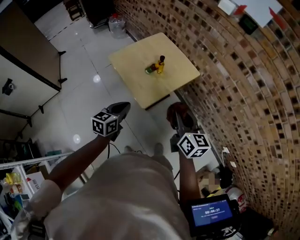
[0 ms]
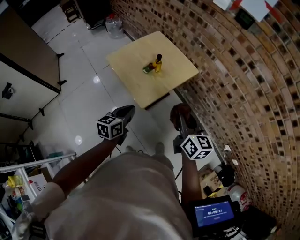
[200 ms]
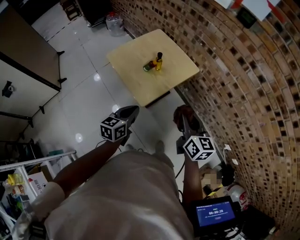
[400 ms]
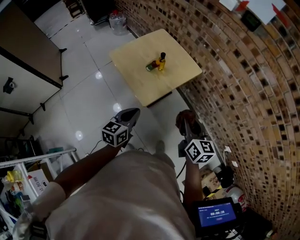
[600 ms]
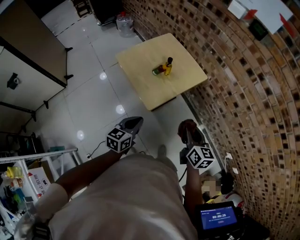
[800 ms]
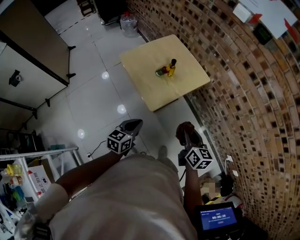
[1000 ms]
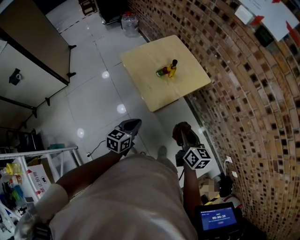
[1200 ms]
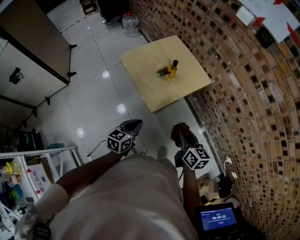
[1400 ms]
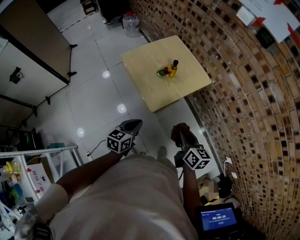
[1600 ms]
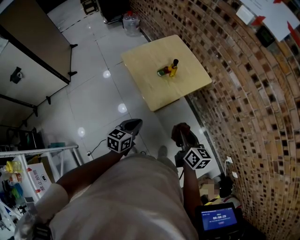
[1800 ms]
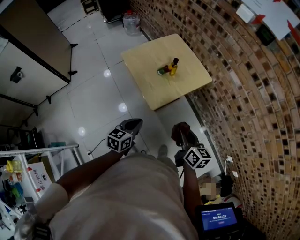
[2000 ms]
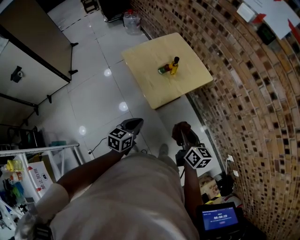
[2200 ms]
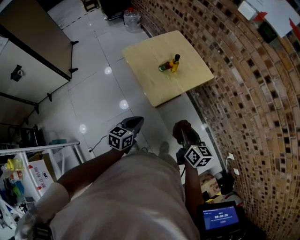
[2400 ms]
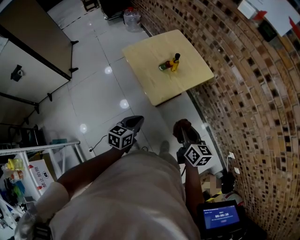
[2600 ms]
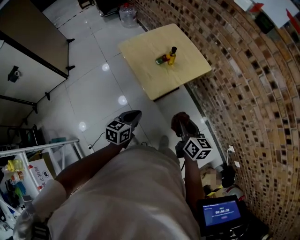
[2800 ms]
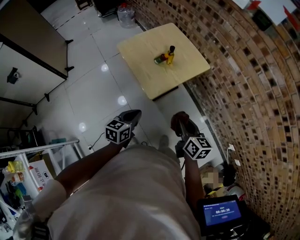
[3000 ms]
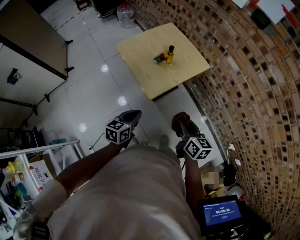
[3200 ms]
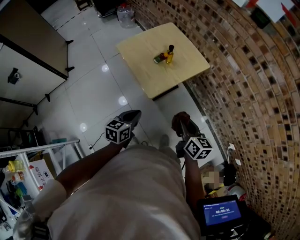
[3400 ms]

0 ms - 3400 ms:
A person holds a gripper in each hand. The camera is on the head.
0 ms - 1600 ms: The right gripper is displaced downward by approximately 10 cm, while the left gripper moves downward and backward, roughly 10 cm.
1600 ms - 3400 ms: The grippers make only small movements.

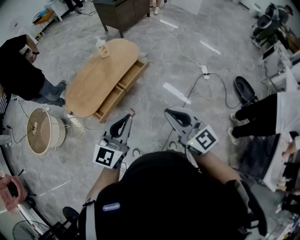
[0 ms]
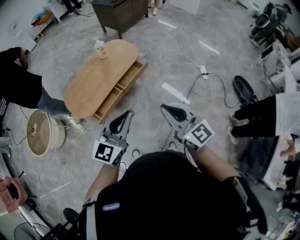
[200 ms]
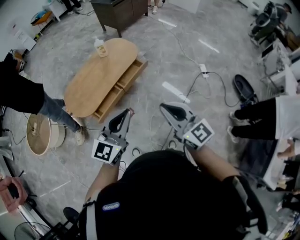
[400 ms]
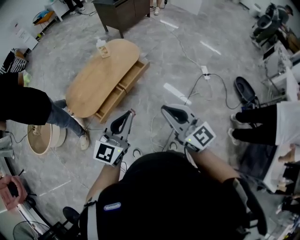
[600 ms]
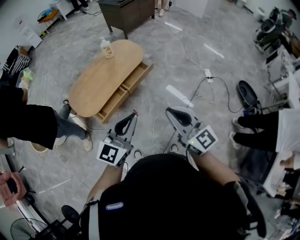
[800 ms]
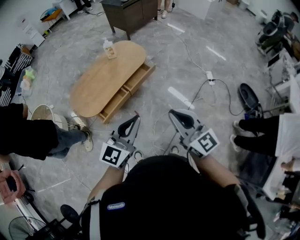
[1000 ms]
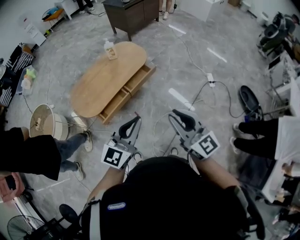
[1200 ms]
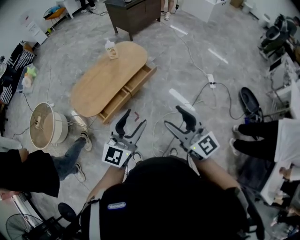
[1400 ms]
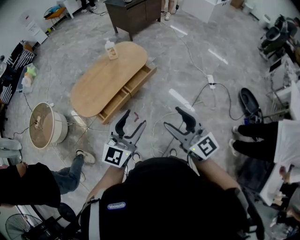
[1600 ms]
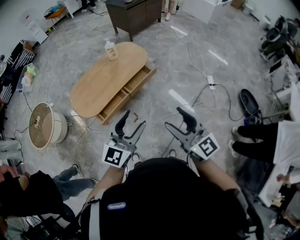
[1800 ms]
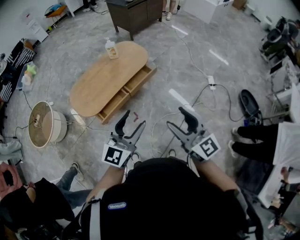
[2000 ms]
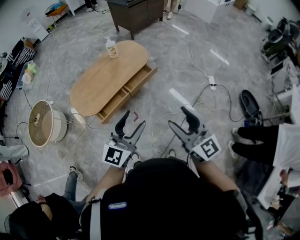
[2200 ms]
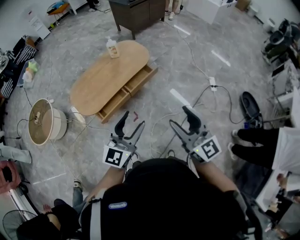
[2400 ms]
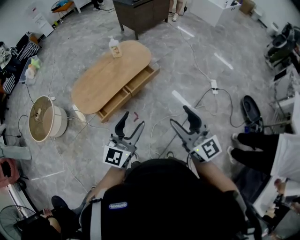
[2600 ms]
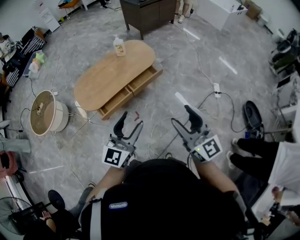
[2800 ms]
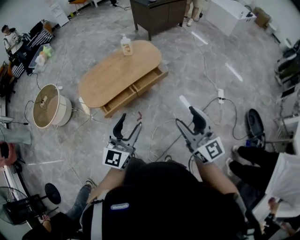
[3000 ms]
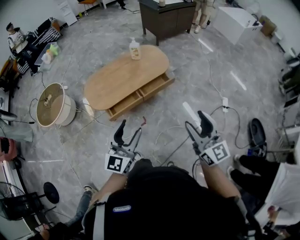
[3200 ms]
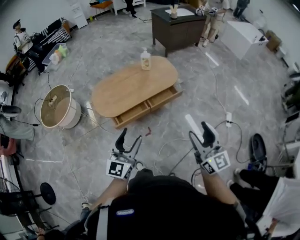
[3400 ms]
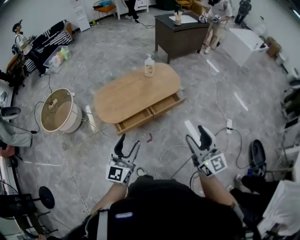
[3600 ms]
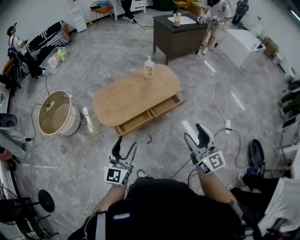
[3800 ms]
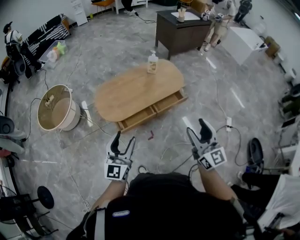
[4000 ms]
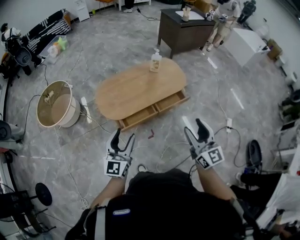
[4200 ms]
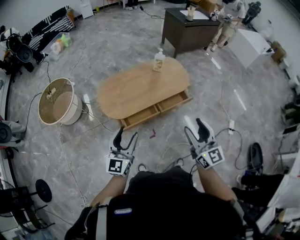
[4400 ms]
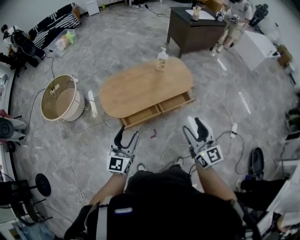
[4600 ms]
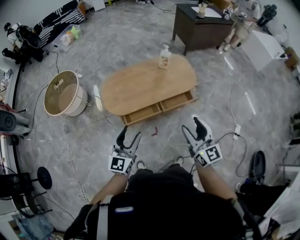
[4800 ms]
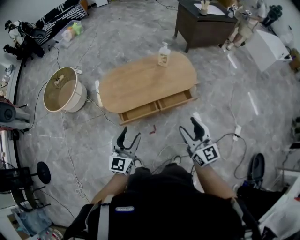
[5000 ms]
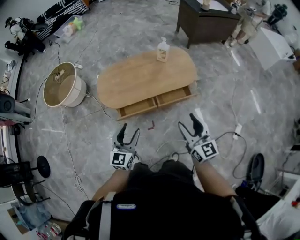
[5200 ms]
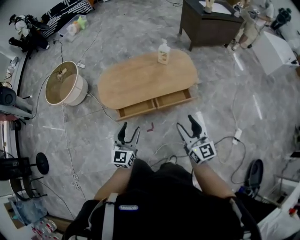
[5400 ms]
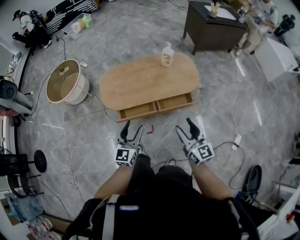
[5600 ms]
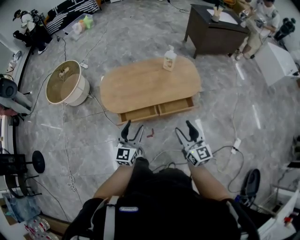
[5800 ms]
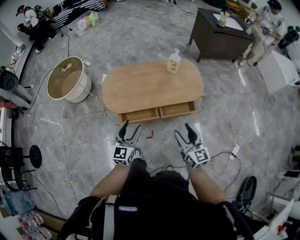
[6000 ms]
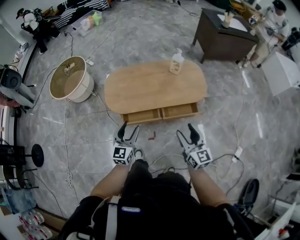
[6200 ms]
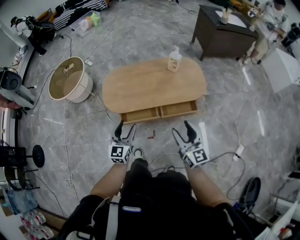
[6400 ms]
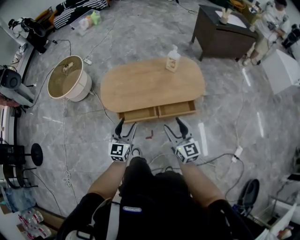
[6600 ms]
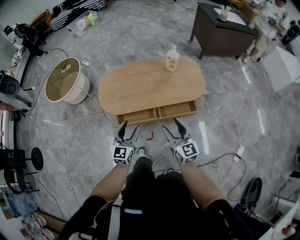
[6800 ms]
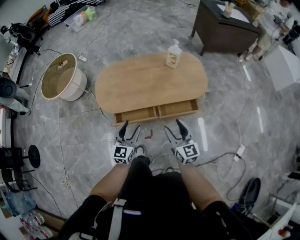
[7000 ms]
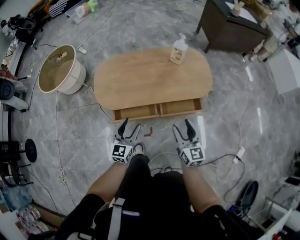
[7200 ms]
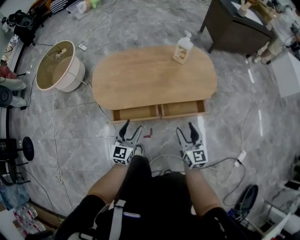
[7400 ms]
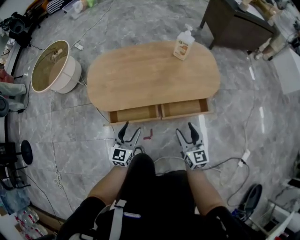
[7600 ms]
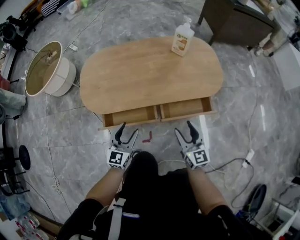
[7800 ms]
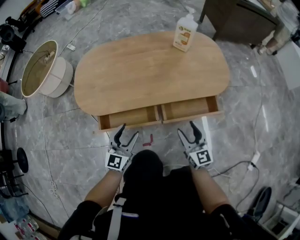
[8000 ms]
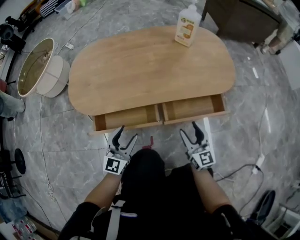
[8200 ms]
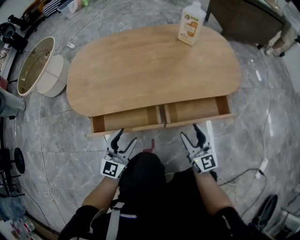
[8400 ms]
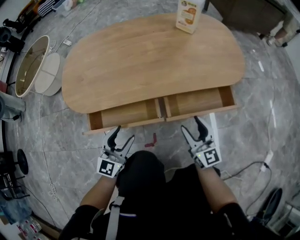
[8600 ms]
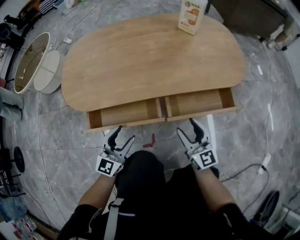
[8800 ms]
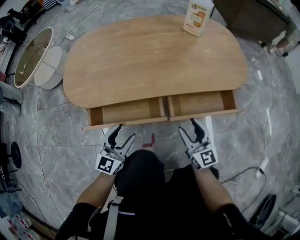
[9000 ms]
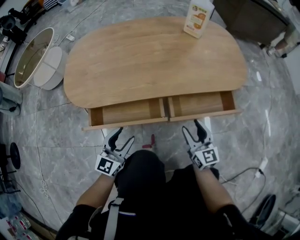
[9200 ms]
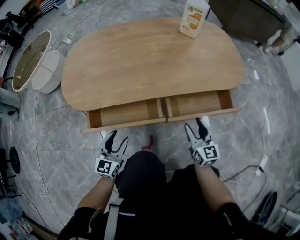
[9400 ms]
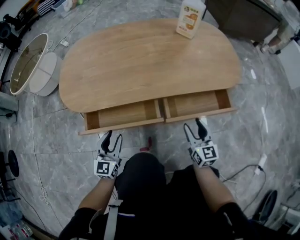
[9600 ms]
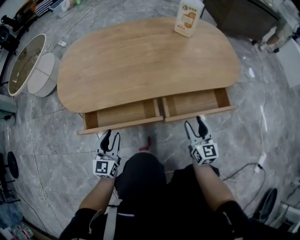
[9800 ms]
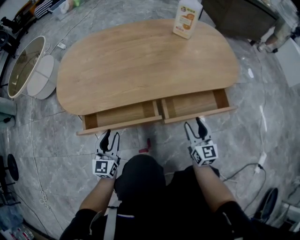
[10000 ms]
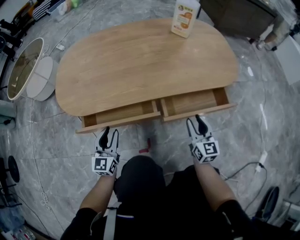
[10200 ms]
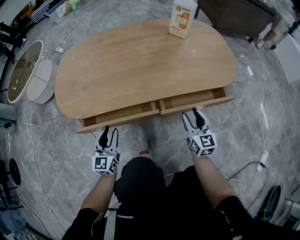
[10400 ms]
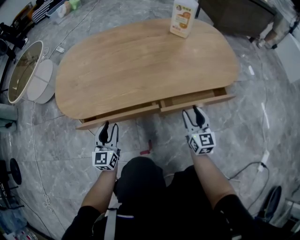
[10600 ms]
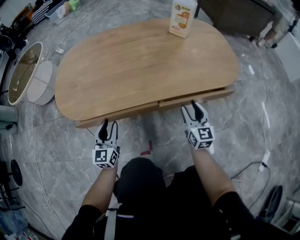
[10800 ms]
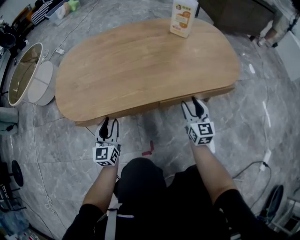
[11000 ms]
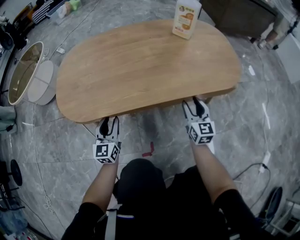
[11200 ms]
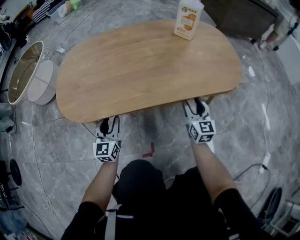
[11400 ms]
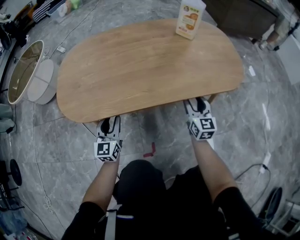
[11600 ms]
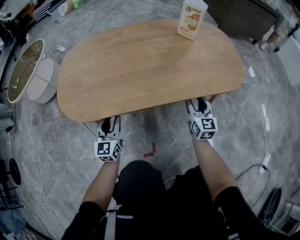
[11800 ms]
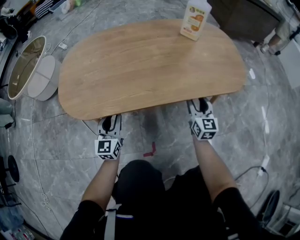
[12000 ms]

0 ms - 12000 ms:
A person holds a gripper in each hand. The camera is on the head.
0 ms - 1600 ms: The left gripper opens up; the right gripper opens its fingers.
1600 ms - 3000 ms: The right gripper shifts some 5 cm to the right.
3000 ms - 4400 ms: The right gripper moves forward and to the left, approximately 20 cm, while the left gripper travels to the left and forward by some 25 cm.
4400 ms - 6000 ms: The left gripper travels to the right, downward and forward by roughly 20 cm, while the right gripper heads downward, forward and to the right, covering some 20 cm.
6000 ms - 7600 ms: The two grippers go about 25 cm downward.
7600 ms - 9000 ms: The grippers both shift downward by about 20 cm.
9000 ms - 10400 ms: The left gripper moves to the left and downward, about 10 cm, and closes its fingers. Meanwhile the right gripper goes roughly 10 cm forward and to the right.
10400 ms - 12000 ms: The two grippers go about 10 cm forward.

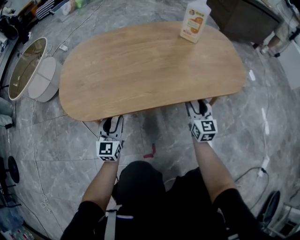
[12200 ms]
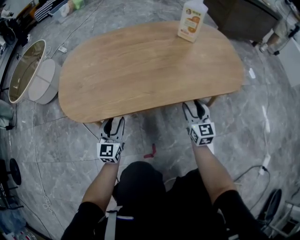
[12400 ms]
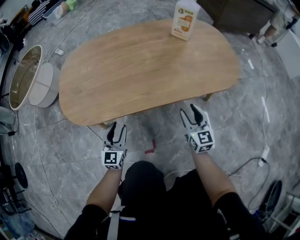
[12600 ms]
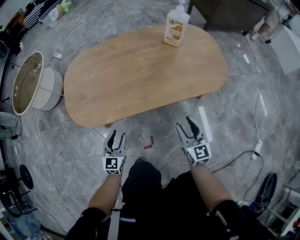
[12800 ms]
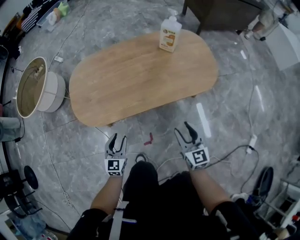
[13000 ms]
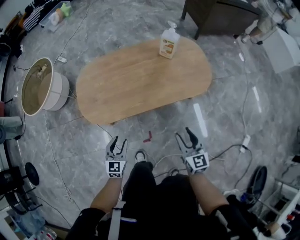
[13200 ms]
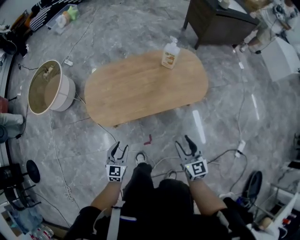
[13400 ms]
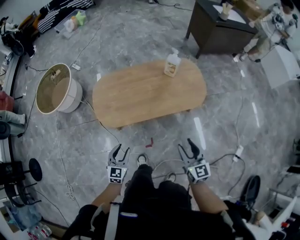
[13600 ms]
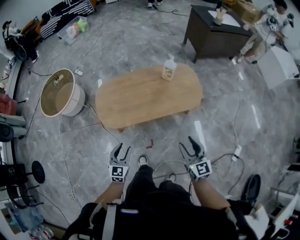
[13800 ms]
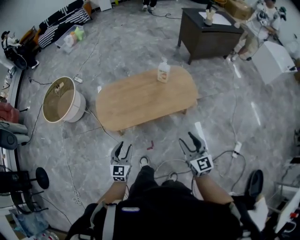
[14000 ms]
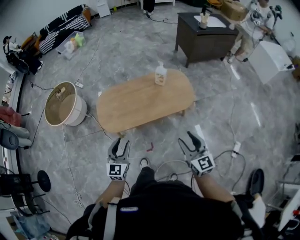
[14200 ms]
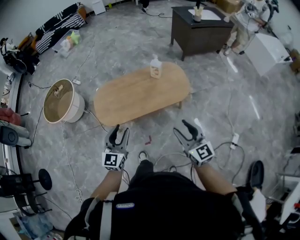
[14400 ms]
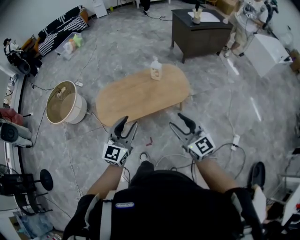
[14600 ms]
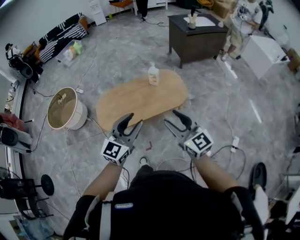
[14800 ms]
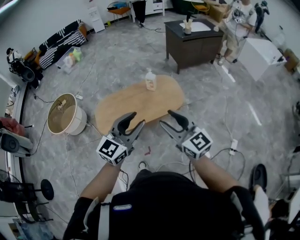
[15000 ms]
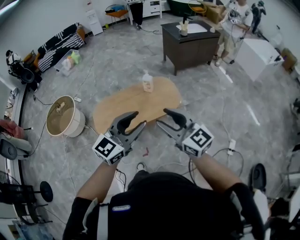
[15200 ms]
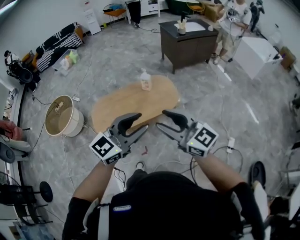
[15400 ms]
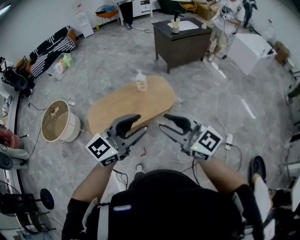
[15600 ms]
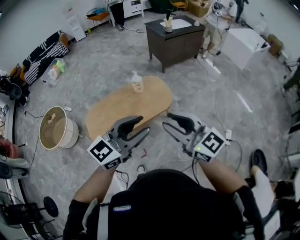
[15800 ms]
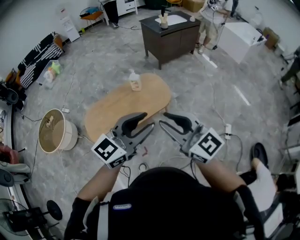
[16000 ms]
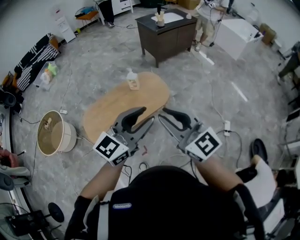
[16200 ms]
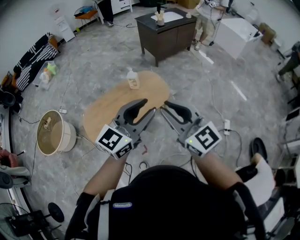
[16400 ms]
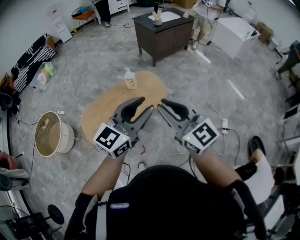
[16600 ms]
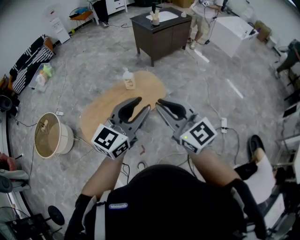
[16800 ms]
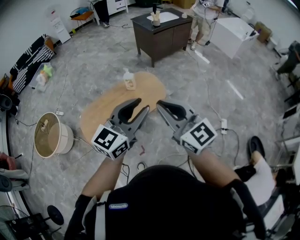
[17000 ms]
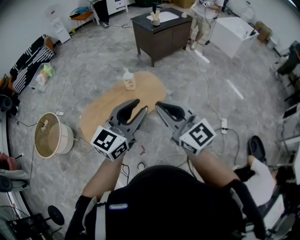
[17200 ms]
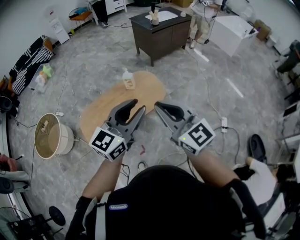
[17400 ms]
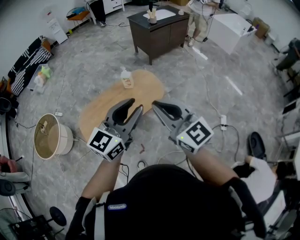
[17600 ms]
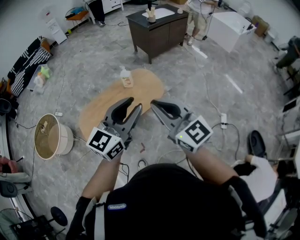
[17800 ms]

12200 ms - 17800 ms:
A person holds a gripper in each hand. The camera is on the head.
12200 ms - 13600 ms: Both grippers travel together upward and backward, some 50 cm.
13600 ms - 15000 ms: The left gripper is displaced upward and to the right by about 50 cm, and swivels about 40 degrees; the right gripper travels upward by roughly 35 cm, and changes its angle by some 20 degrees.
15000 ms - 16400 ms: The left gripper moves upward and to the right, roughly 10 cm, while the right gripper heads upward, covering about 5 cm, and closes.
16400 ms - 17800 ms: There are only small adjustments of the grippers.

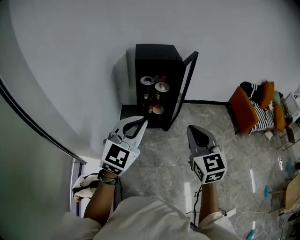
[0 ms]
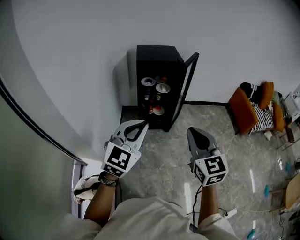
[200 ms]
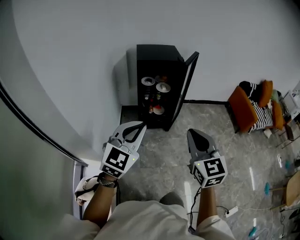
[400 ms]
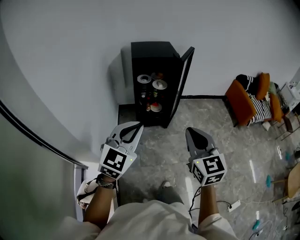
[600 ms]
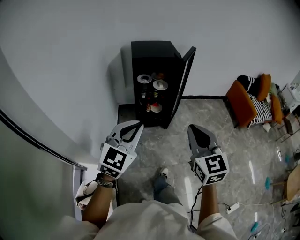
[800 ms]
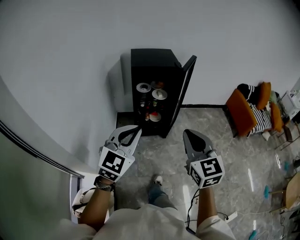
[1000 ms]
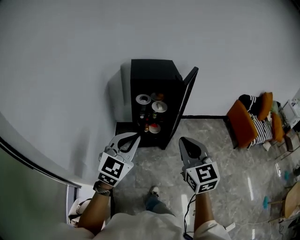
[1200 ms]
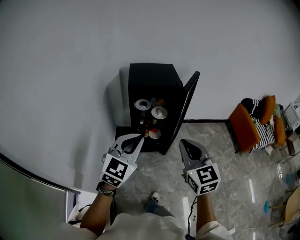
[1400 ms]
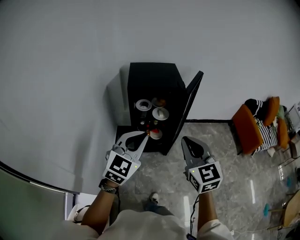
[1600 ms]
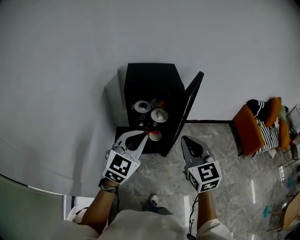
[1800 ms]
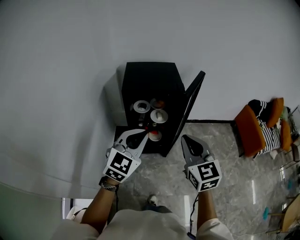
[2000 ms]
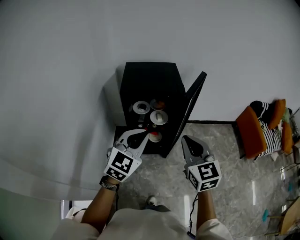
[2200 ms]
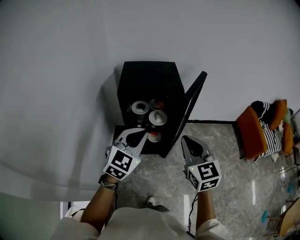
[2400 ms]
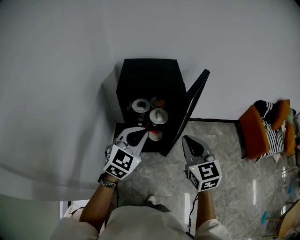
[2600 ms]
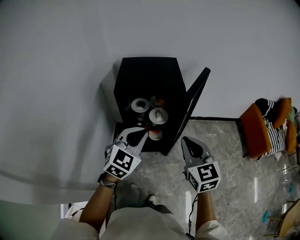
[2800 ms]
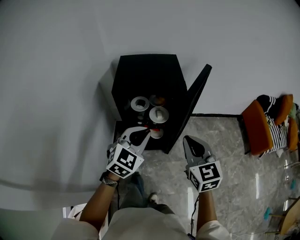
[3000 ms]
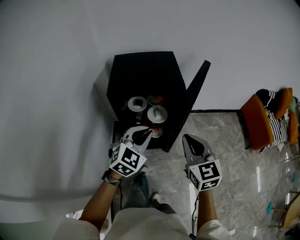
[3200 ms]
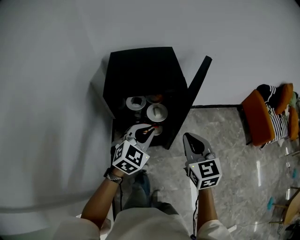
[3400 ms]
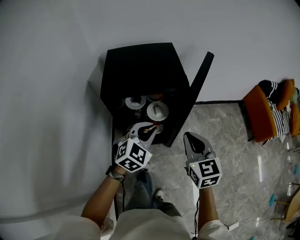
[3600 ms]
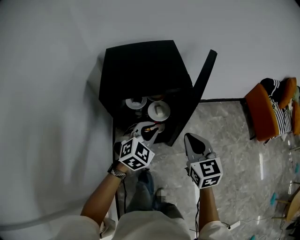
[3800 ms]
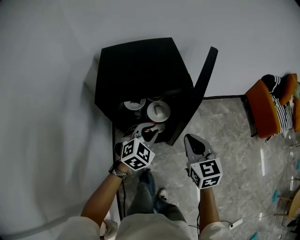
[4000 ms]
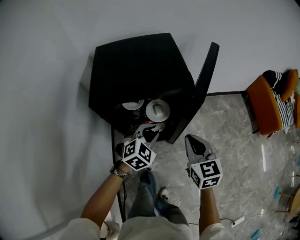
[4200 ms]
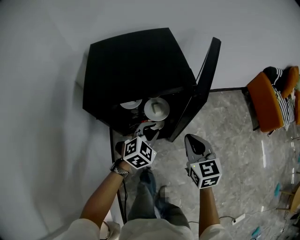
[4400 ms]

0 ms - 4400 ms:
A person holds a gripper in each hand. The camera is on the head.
0 ms - 1400 ms: The two grippers go roughly 20 cm forward.
1400 ms - 3000 ms: The grippers both shift forward by approximately 25 cm.
3000 ms - 4400 ms: Both grippers move downward and forward, about 25 cm. The left gripper swivels some 30 degrees.
